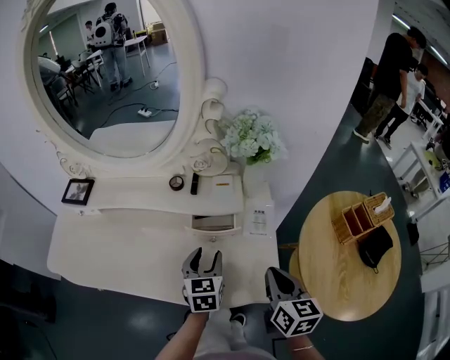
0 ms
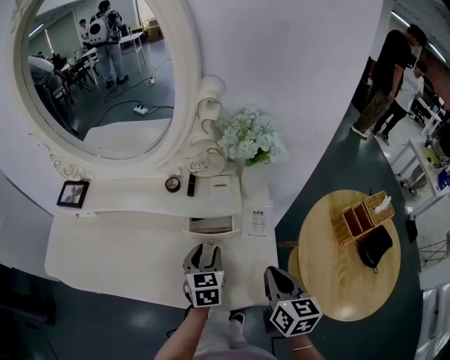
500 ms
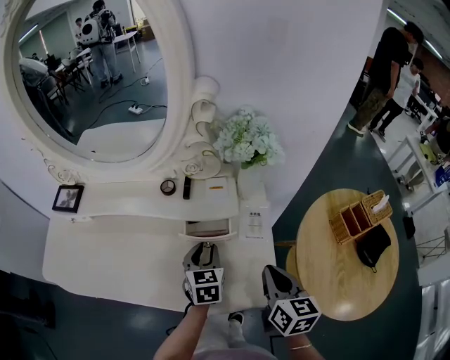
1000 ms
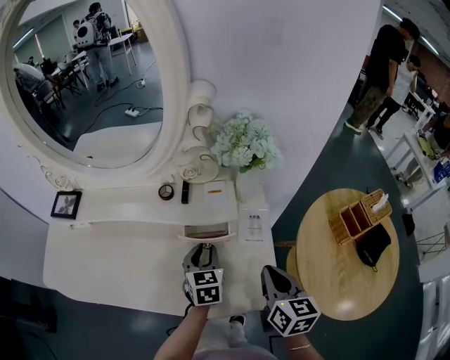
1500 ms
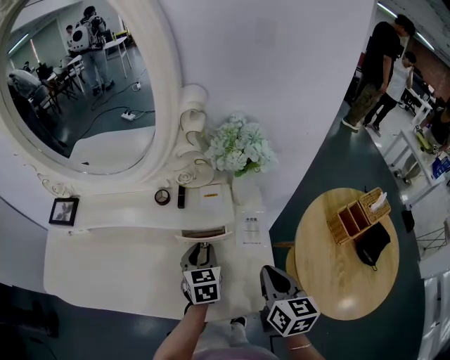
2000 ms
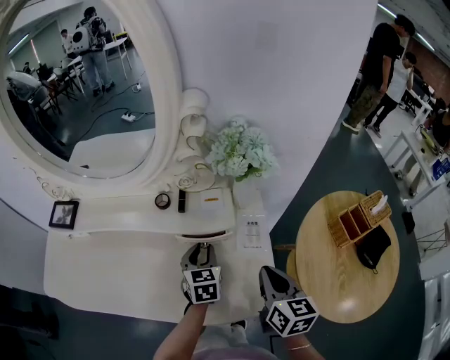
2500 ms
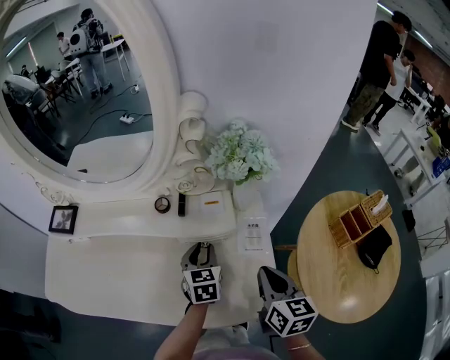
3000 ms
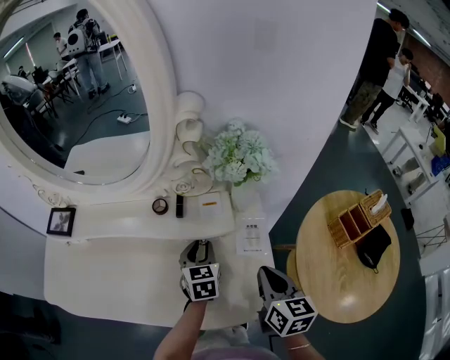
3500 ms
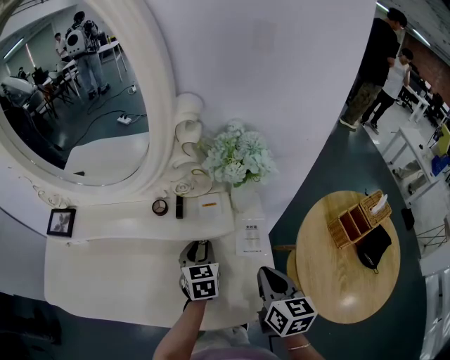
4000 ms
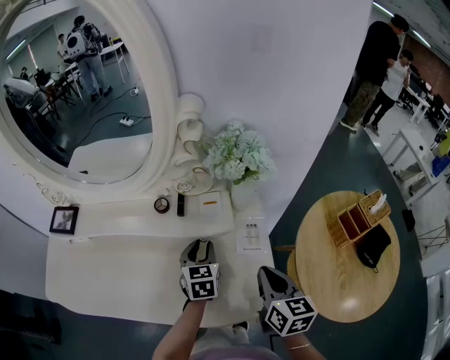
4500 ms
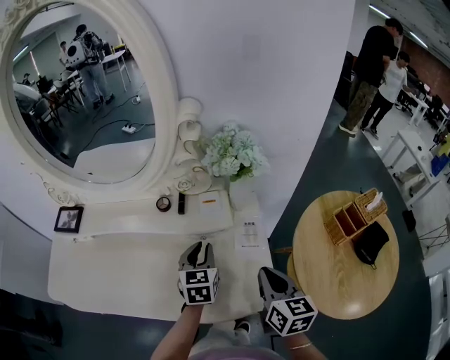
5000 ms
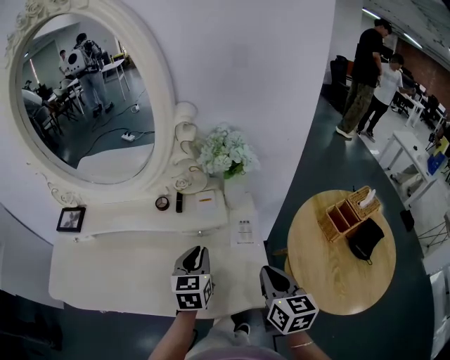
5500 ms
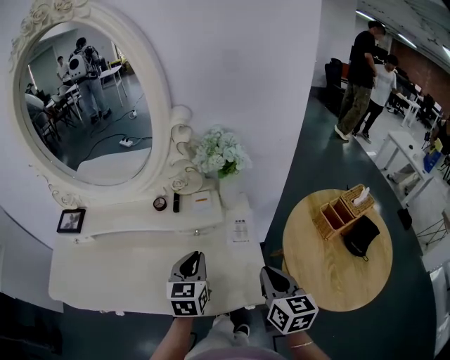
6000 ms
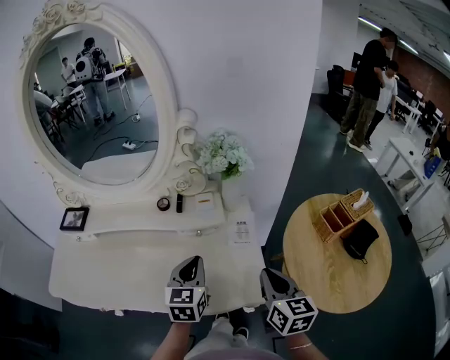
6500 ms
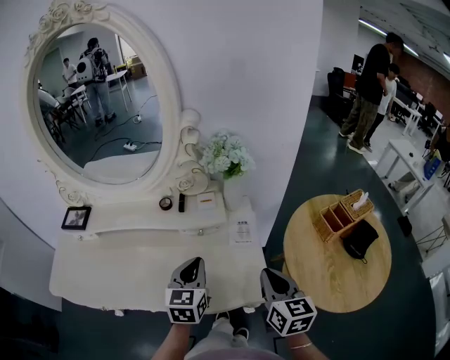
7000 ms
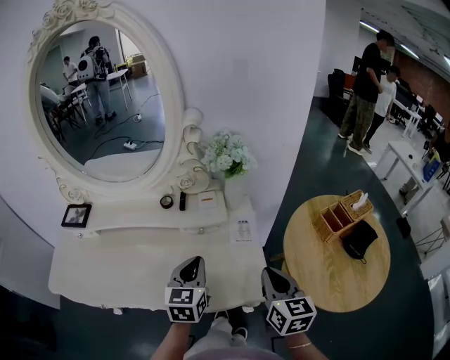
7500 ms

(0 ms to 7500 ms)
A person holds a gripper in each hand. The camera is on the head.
0 ms - 2000 ms: The left gripper moves forward, some 5 cm.
2000 ms - 4000 ms: The grippers move only a little.
4000 ms - 5500 ms: The right gripper travels backward by about 5 cm. The left gripper travels backward and upward by some 10 cm.
5500 ms - 7500 ms: The left gripper is displaced backward by some 5 cm.

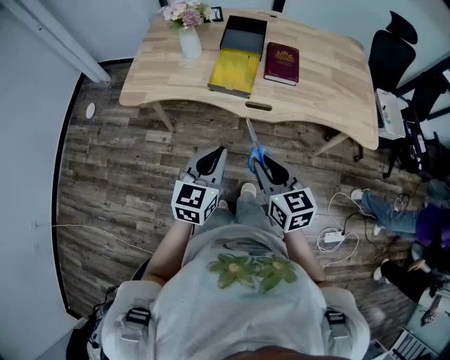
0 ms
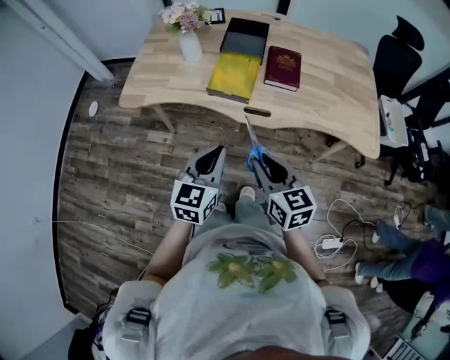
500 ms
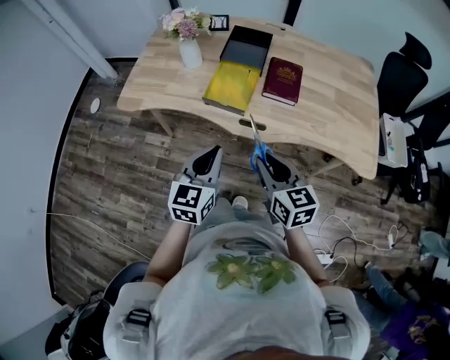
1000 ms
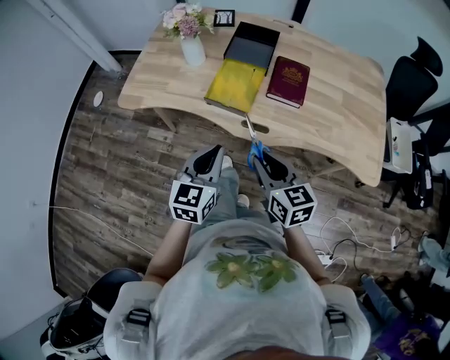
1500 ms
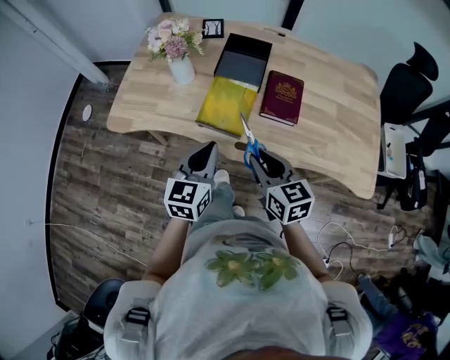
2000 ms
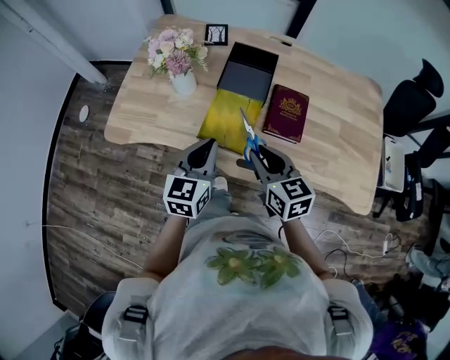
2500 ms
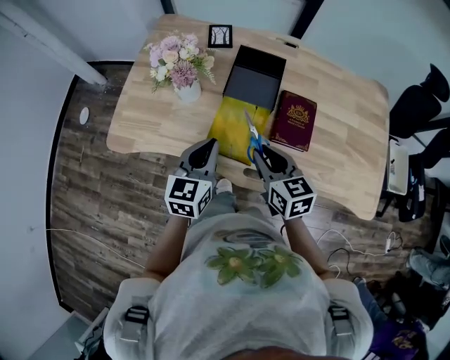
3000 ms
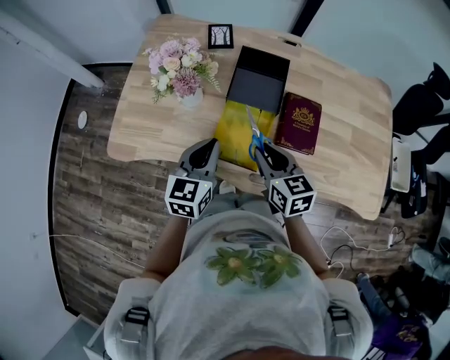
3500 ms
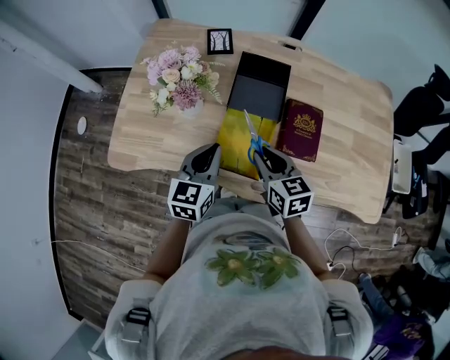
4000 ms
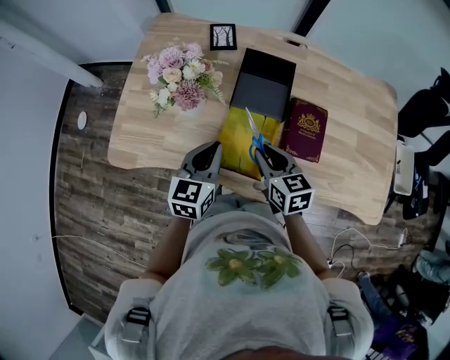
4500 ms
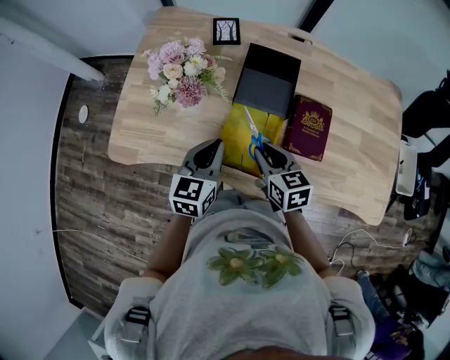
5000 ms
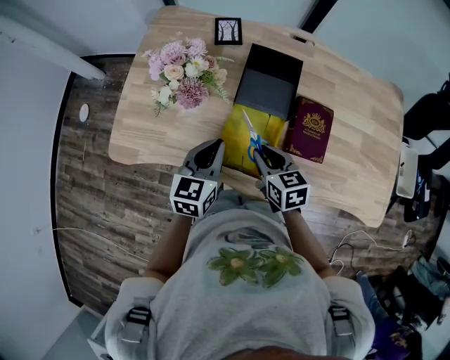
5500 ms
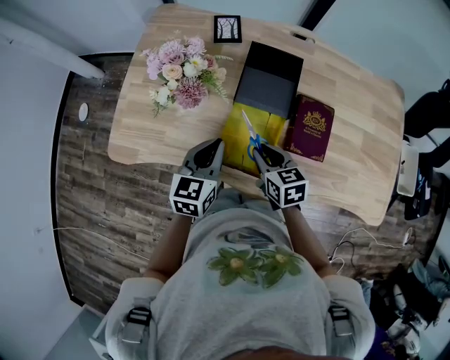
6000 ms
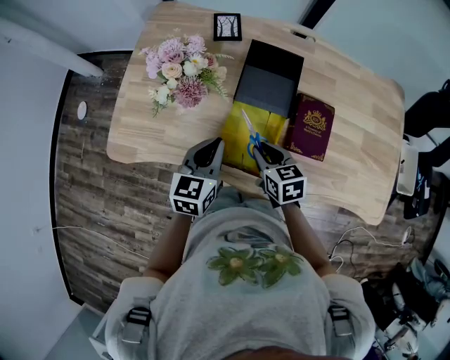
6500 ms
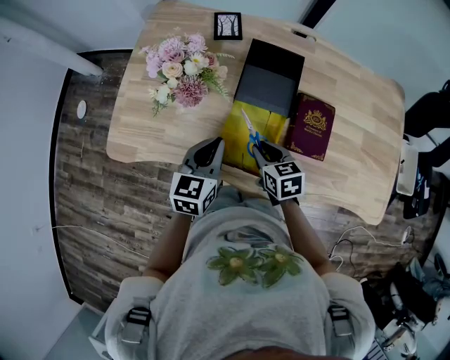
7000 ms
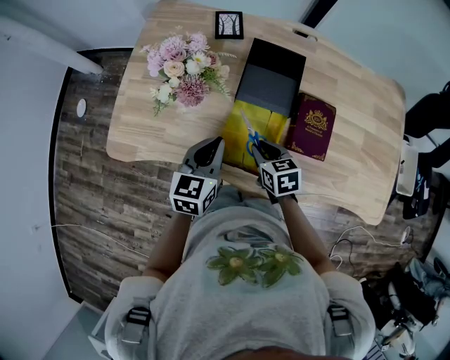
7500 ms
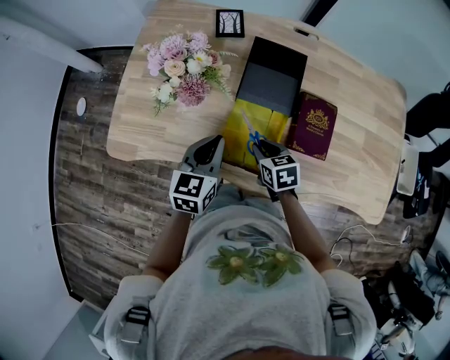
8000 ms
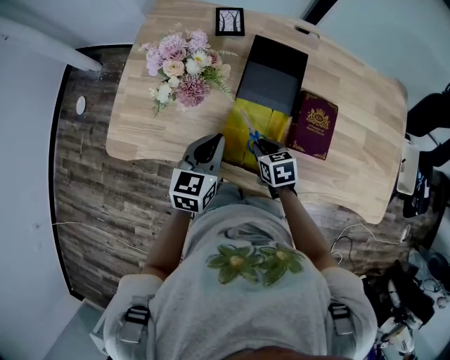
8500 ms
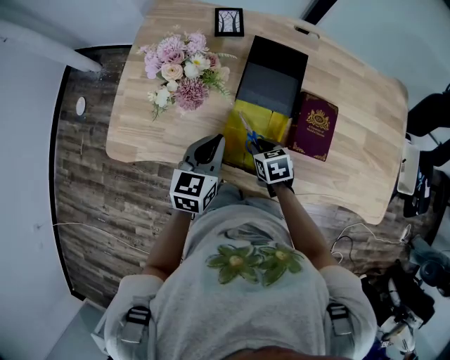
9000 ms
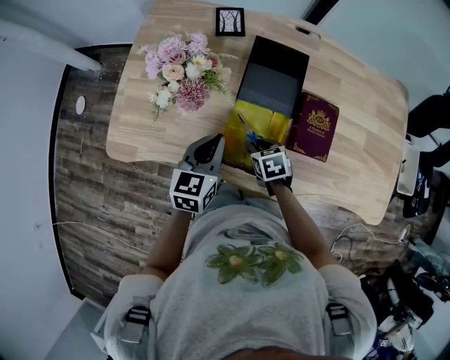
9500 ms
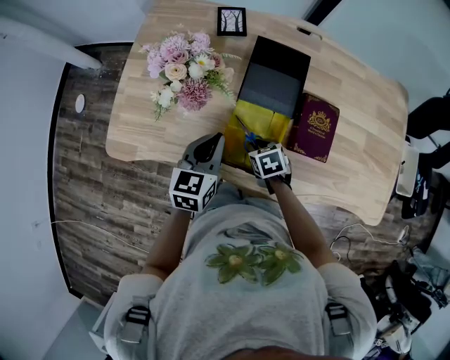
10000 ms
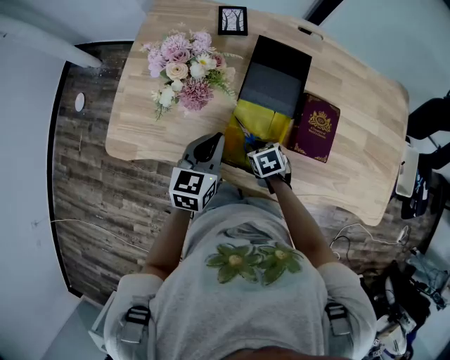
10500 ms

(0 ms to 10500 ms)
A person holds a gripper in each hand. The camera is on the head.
0 ms - 2000 ms: Both grippers move forward, some 20 cm.
2000 ms - 4000 ms: Both grippers travel together forward, about 20 cm.
4000 ms - 6500 ms: The right gripper goes about 10 cm downward.
6500 ms - 8500 ms: The right gripper is displaced downward by approximately 5 cm.
8500 ms - 10500 ms: The right gripper heads downward, covering roughly 5 cm.

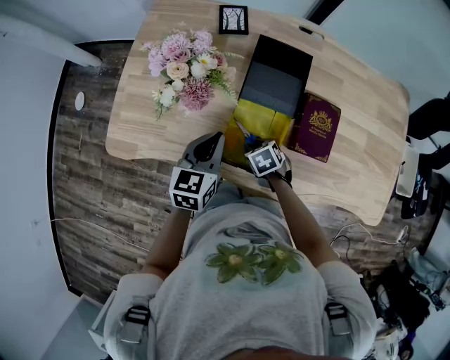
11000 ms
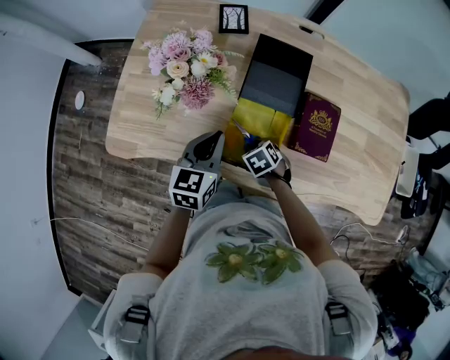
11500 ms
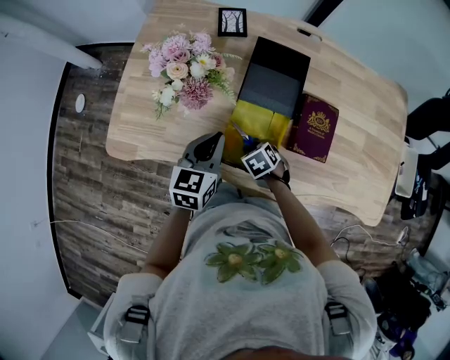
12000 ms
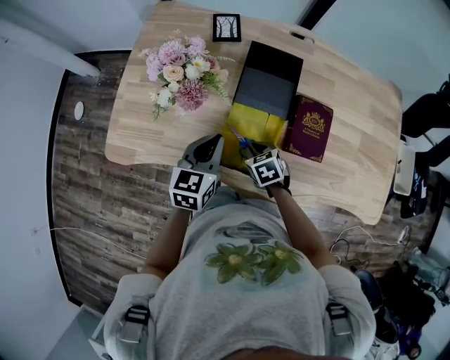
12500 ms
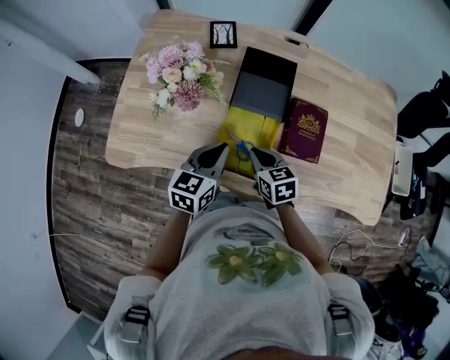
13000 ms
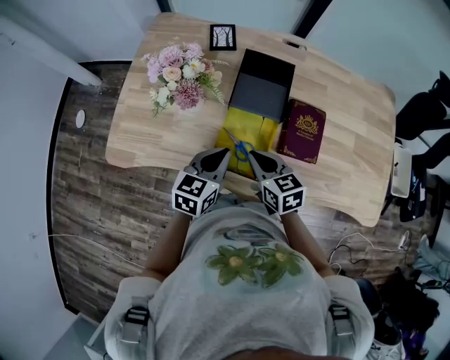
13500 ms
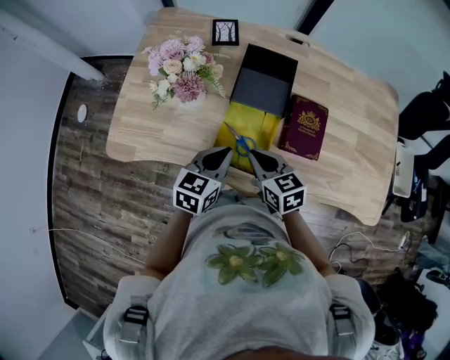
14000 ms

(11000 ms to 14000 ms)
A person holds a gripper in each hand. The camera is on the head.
11000 ms - 12500 ms: There are only small adjustments of the grippers.
12500 ms - 14000 ms: The left gripper shifts approximately 5 cm backward. The right gripper heads upward, covering approximately 15 cm, and changes its angle by approximately 30 degrees.

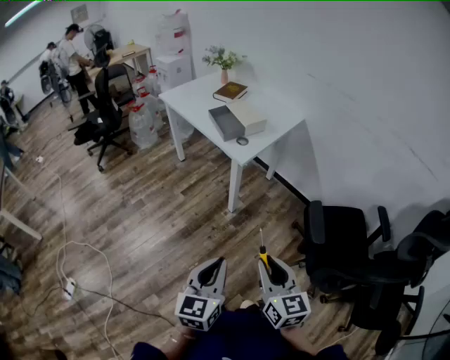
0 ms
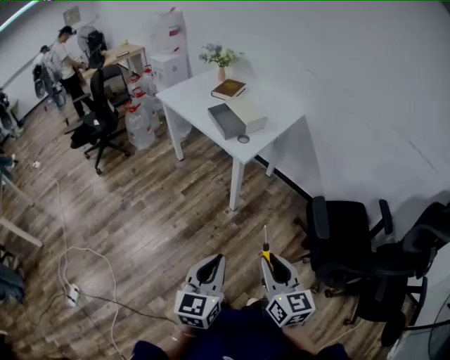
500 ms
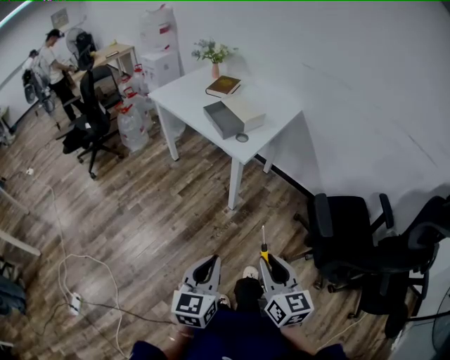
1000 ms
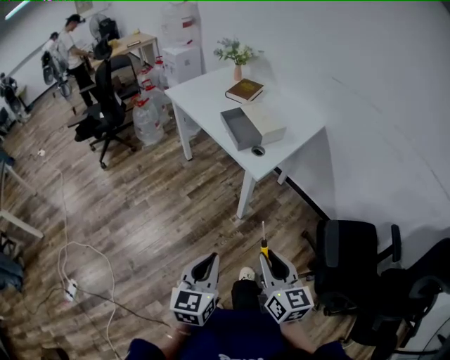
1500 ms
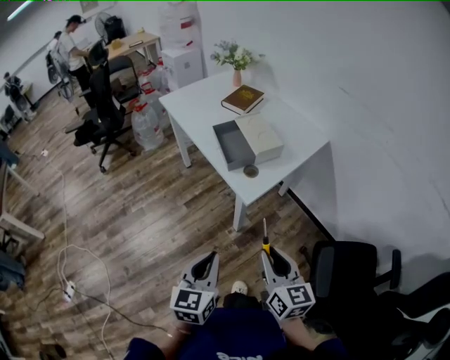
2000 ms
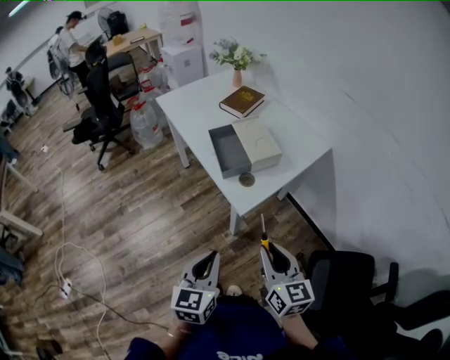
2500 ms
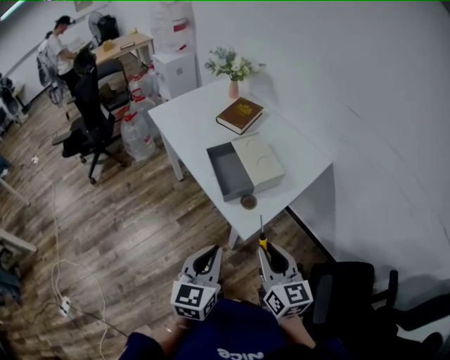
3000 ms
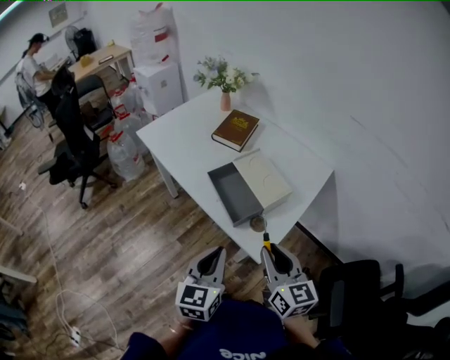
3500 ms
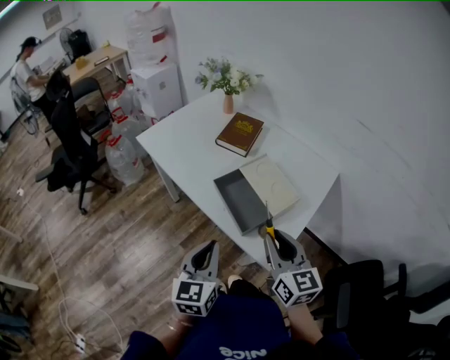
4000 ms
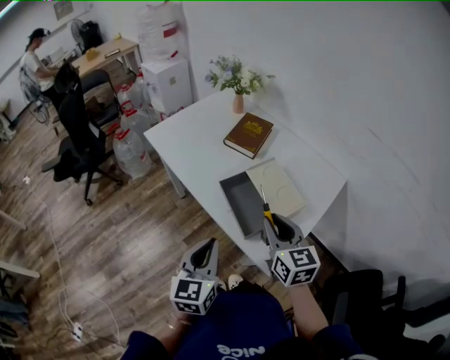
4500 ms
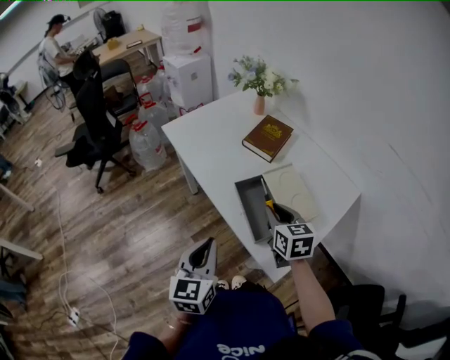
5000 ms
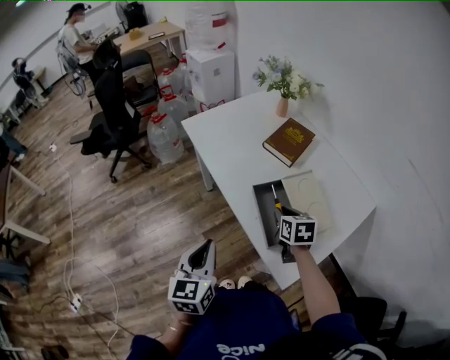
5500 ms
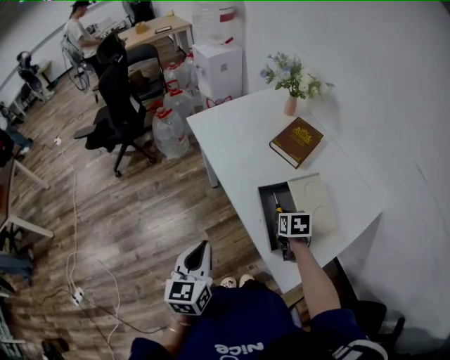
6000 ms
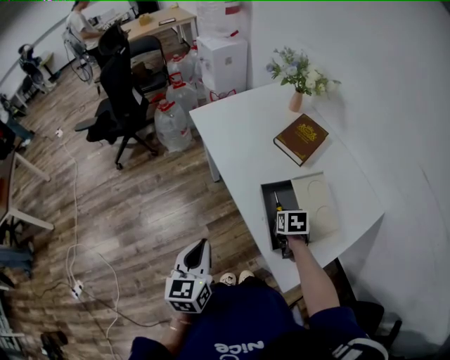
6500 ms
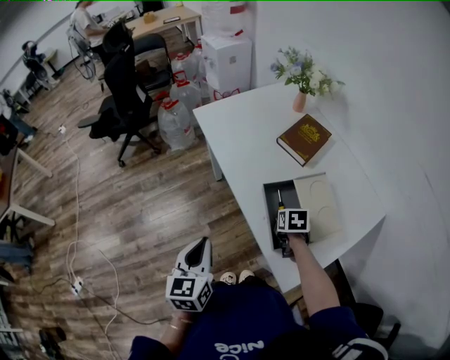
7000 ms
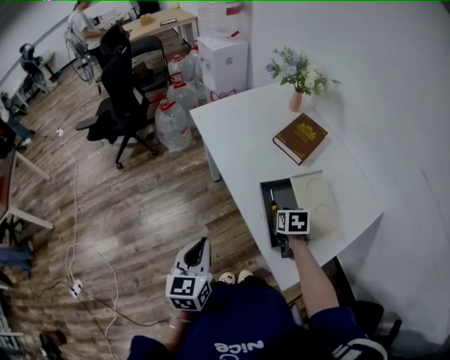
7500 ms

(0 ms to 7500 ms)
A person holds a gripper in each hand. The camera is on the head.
0 ms - 2000 ms: Both grippers move forward, about 30 cm.
2000 ms - 4000 ms: The two grippers go some 30 cm forward.
4000 ms - 5500 ms: The left gripper shifts roughly 10 cm to the left, while the right gripper is displaced forward and downward by approximately 25 cm, and points its fingers some 30 degrees further downward.
5500 ms - 7500 ms: The right gripper is displaced downward by roughly 5 cm.
